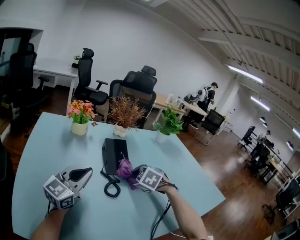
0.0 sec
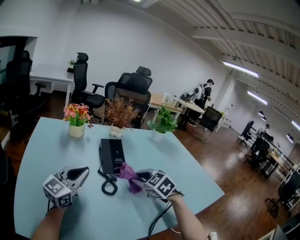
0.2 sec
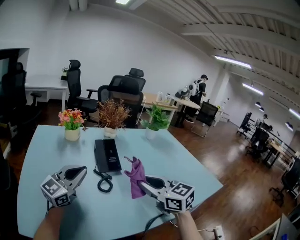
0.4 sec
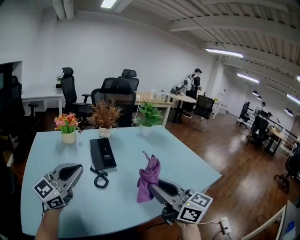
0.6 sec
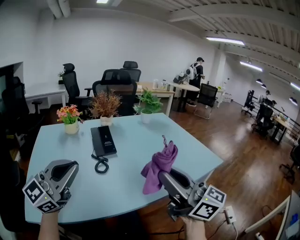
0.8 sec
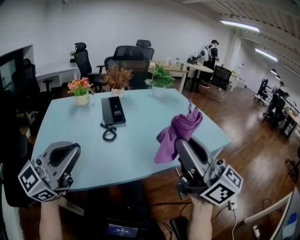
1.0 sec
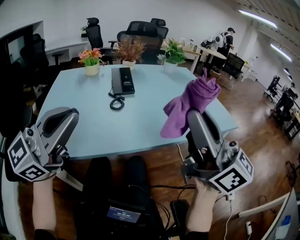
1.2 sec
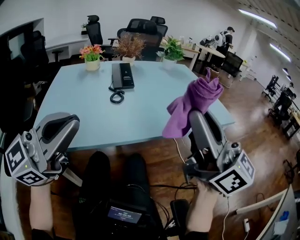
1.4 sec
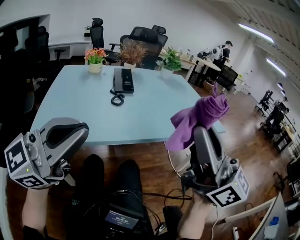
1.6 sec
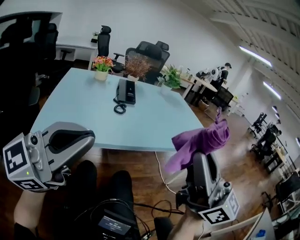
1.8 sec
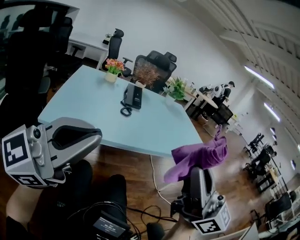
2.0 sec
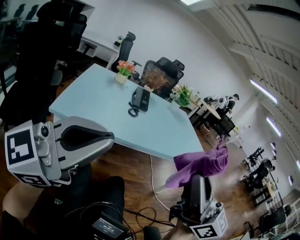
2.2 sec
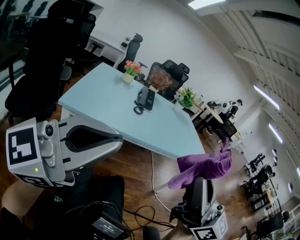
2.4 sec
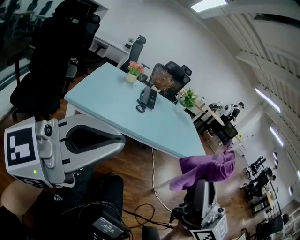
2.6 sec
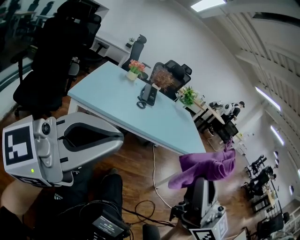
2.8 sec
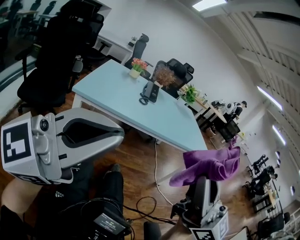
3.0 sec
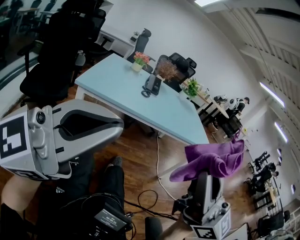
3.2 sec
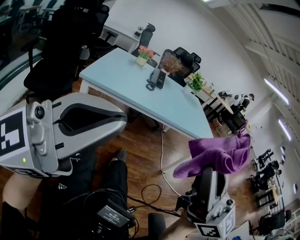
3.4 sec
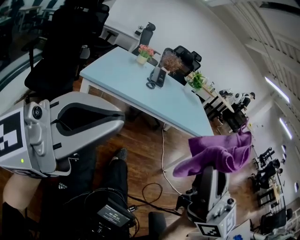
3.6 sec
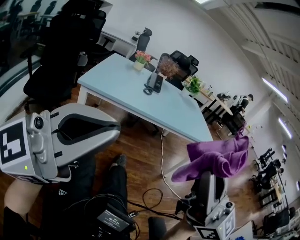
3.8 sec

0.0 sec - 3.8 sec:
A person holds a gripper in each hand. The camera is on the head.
0.0 sec - 1.2 sec: The two grippers travel together, backward and to the right, about 50 cm. The right gripper is displaced upward by approximately 25 cm, and tilts its fingers roughly 90 degrees upward.
1.2 sec - 2.6 sec: The two grippers travel together, backward, some 50 cm.
2.6 sec - 3.8 sec: Both grippers move backward, about 5 cm.

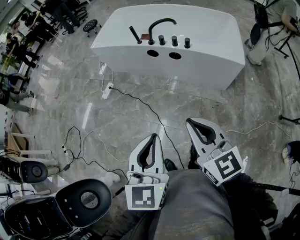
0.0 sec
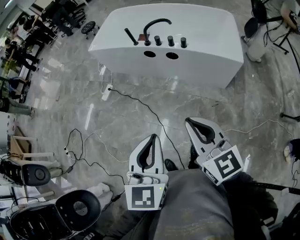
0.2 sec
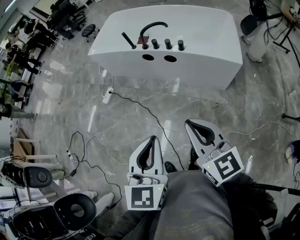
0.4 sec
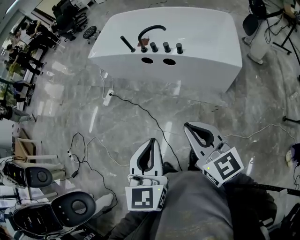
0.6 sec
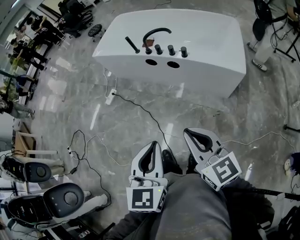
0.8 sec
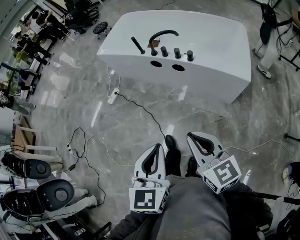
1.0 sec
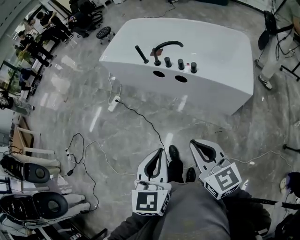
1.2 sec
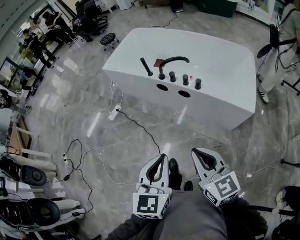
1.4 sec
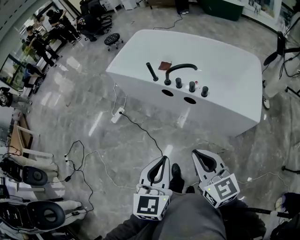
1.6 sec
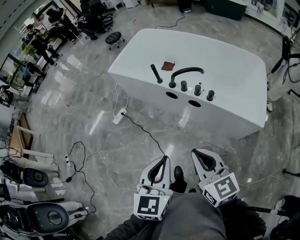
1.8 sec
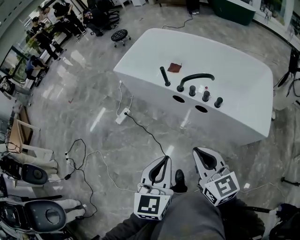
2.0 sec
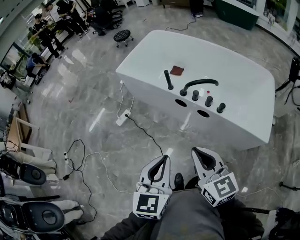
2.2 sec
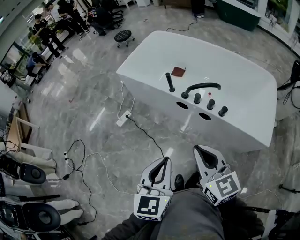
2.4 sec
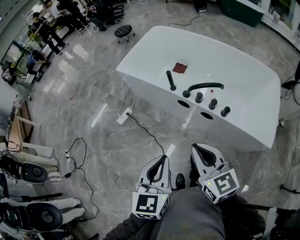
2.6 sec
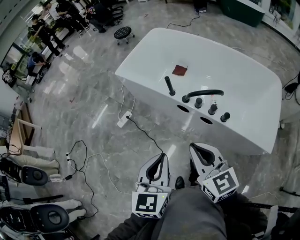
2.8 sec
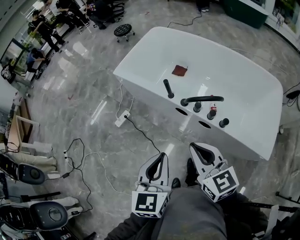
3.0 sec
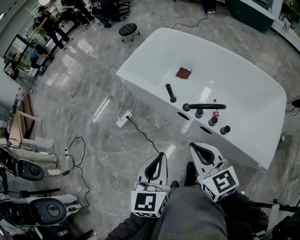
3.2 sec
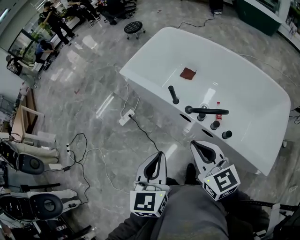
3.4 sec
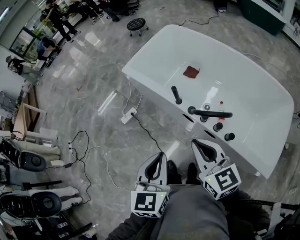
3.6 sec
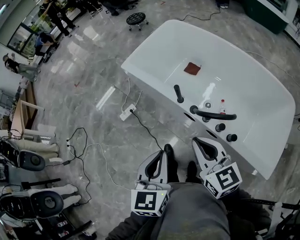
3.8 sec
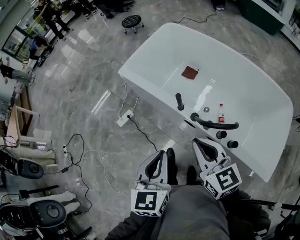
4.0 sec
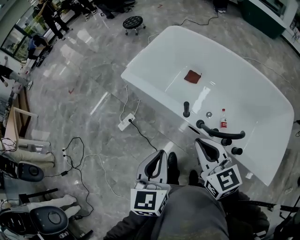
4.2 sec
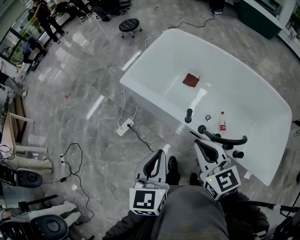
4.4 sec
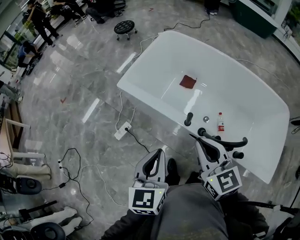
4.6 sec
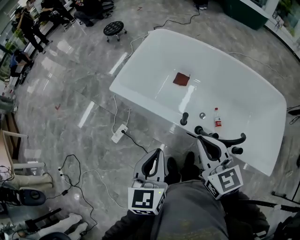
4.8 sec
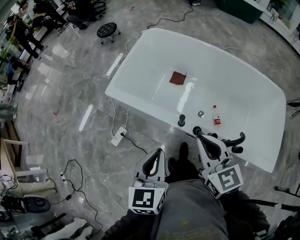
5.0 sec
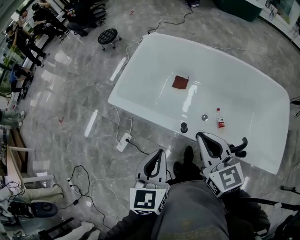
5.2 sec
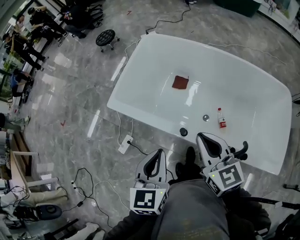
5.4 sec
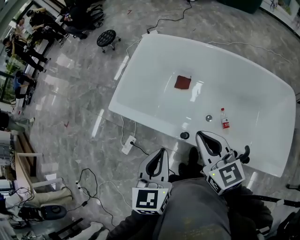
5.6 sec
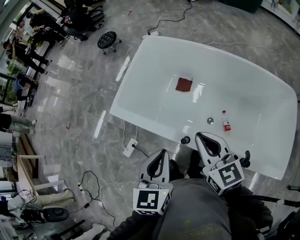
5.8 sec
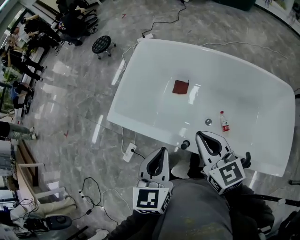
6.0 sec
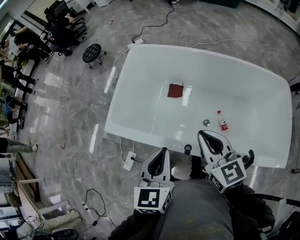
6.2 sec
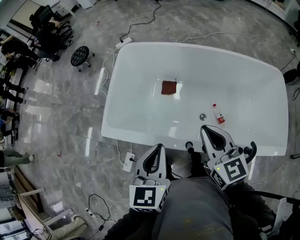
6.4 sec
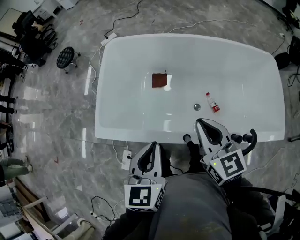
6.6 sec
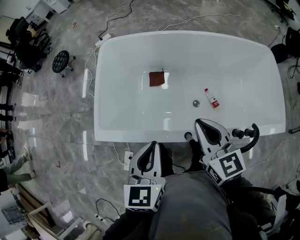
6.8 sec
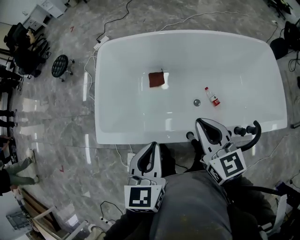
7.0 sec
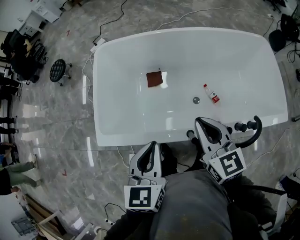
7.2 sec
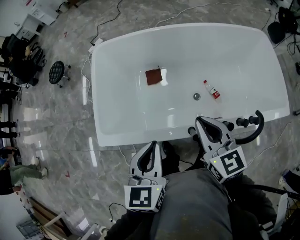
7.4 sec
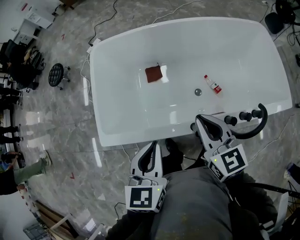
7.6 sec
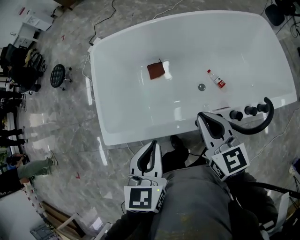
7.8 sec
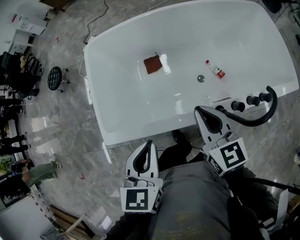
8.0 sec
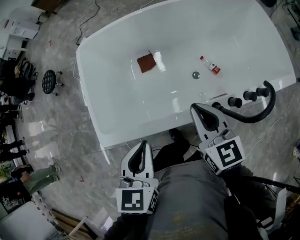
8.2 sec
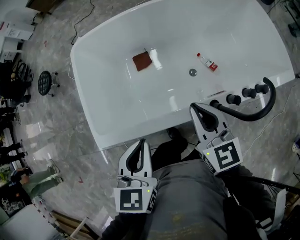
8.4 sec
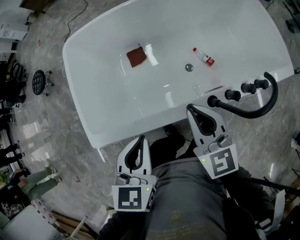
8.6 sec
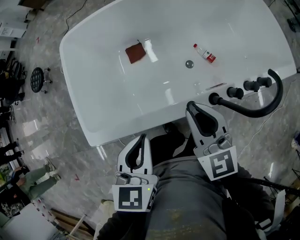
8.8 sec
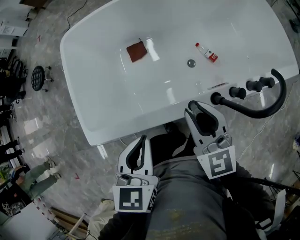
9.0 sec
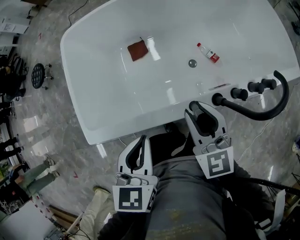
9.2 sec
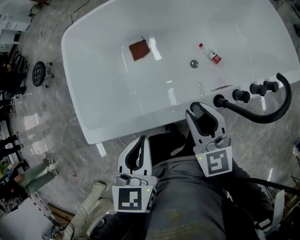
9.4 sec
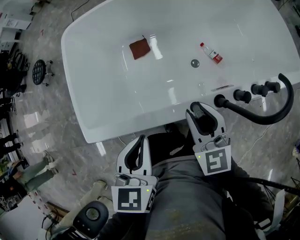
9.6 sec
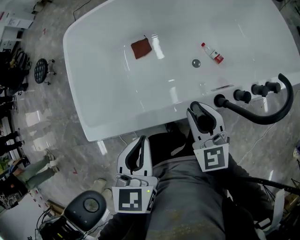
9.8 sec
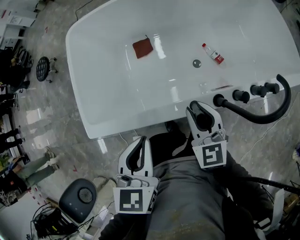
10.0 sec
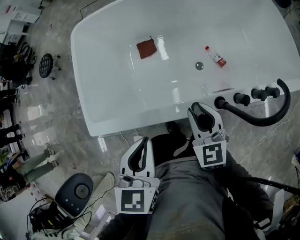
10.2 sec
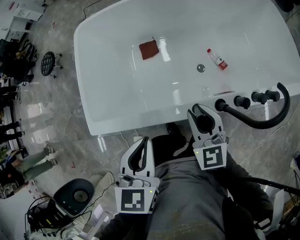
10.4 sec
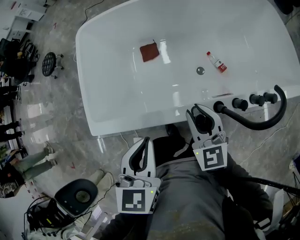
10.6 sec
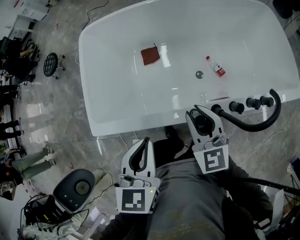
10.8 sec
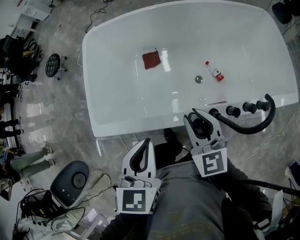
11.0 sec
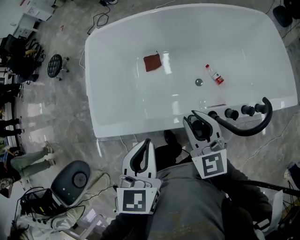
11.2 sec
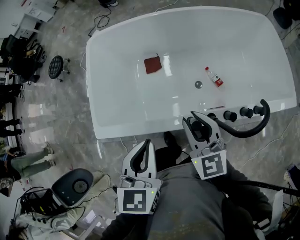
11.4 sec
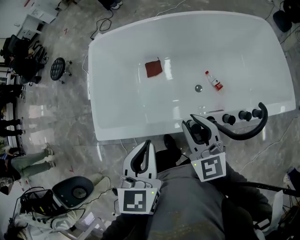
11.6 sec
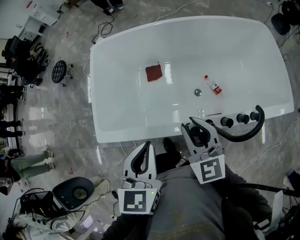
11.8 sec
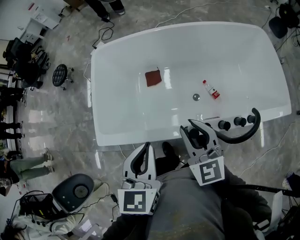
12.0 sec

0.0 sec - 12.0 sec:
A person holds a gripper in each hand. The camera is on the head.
0.0 sec - 1.6 sec: Both grippers move forward and to the right, roughly 20 cm.
1.6 sec - 3.0 sec: The two grippers go some 25 cm forward.
3.0 sec - 4.4 sec: The two grippers go about 25 cm forward.
4.4 sec - 6.0 sec: The left gripper shifts approximately 20 cm forward; the right gripper is displaced forward and to the right by some 20 cm.
6.0 sec - 7.6 sec: The right gripper goes approximately 5 cm downward, and swivels about 30 degrees. Meanwhile the left gripper ends up some 10 cm from where it was, and rotates some 30 degrees.
7.6 sec - 9.0 sec: The two grippers go roughly 10 cm downward. The right gripper opens.
9.0 sec - 10.4 sec: The right gripper shifts approximately 5 cm downward.
10.4 sec - 12.0 sec: Both grippers move upward, approximately 15 cm.

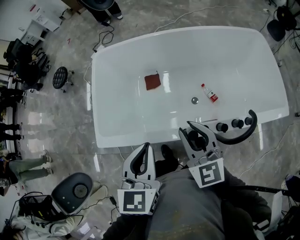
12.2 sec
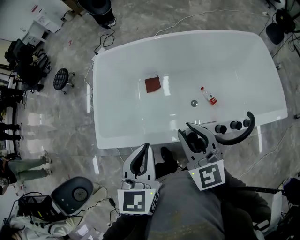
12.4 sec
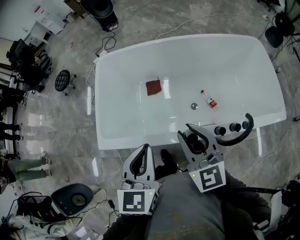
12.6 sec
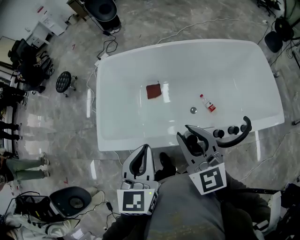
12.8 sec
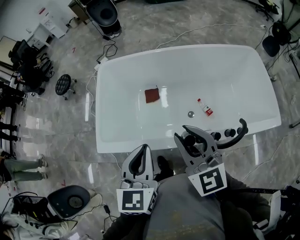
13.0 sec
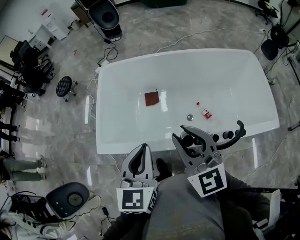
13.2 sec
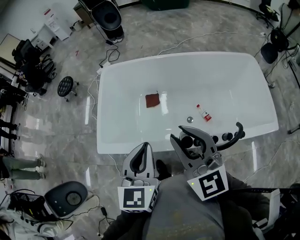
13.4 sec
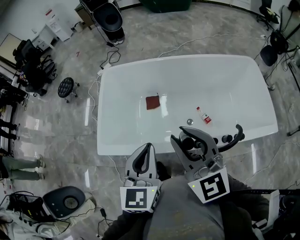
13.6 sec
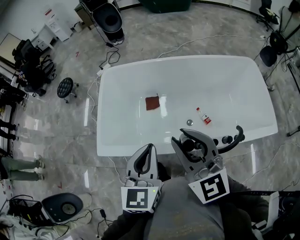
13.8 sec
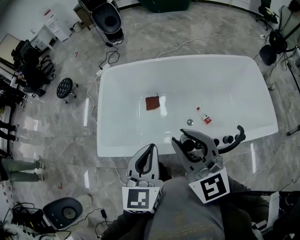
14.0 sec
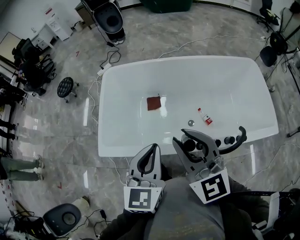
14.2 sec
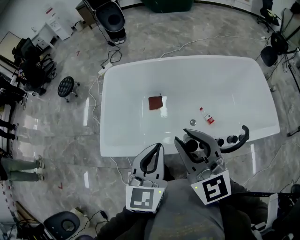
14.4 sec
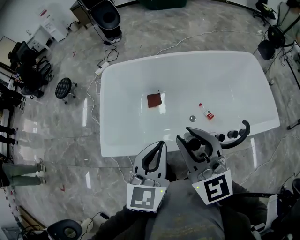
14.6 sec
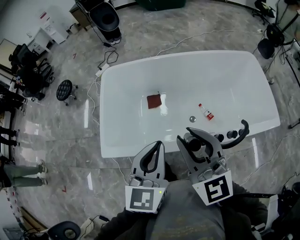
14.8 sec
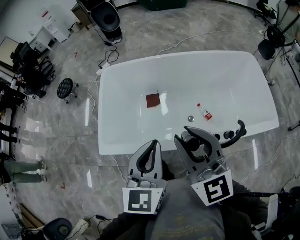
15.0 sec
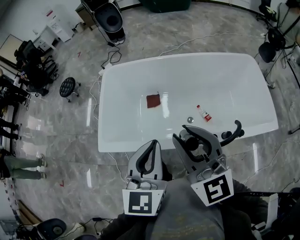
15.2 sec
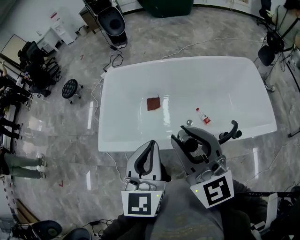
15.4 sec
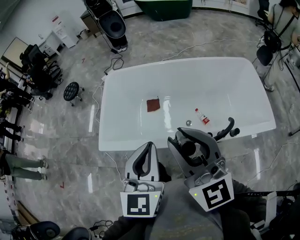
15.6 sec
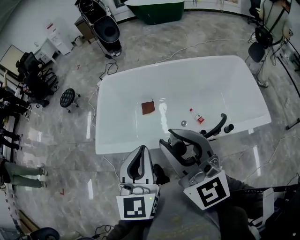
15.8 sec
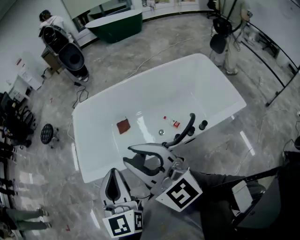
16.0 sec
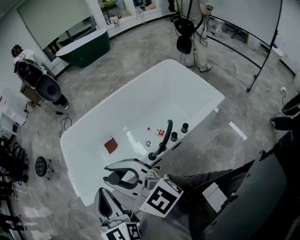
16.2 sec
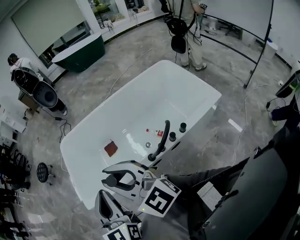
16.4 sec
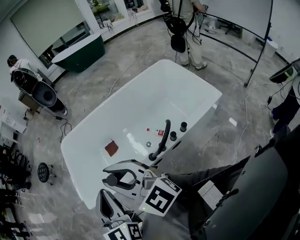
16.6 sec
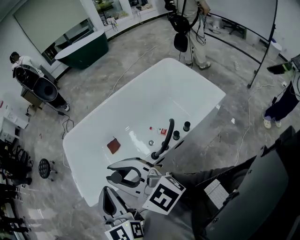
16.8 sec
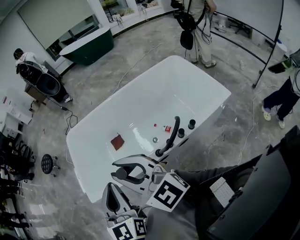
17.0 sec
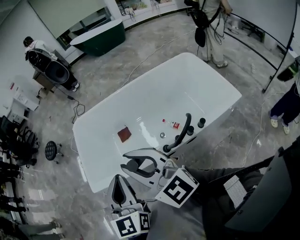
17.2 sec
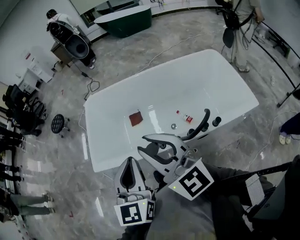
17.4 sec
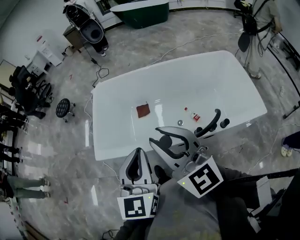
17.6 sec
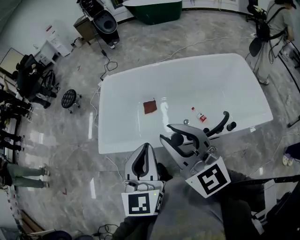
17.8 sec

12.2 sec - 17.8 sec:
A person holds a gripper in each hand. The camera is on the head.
12.2 sec - 13.6 sec: The left gripper goes some 5 cm upward. The right gripper moves upward, roughly 15 cm.
13.6 sec - 15.0 sec: The grippers move only a little.
15.0 sec - 16.4 sec: Both grippers move backward, some 10 cm.
16.4 sec - 17.8 sec: The right gripper moves some 5 cm upward and comes back.

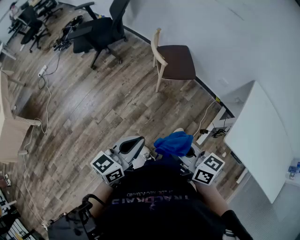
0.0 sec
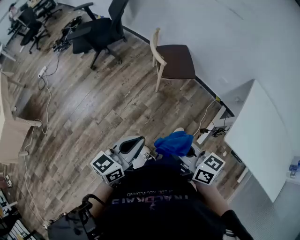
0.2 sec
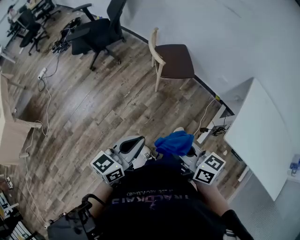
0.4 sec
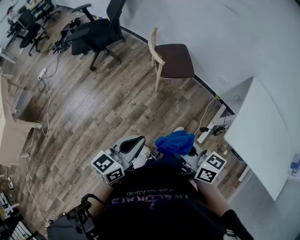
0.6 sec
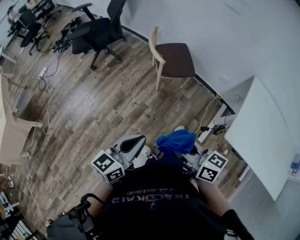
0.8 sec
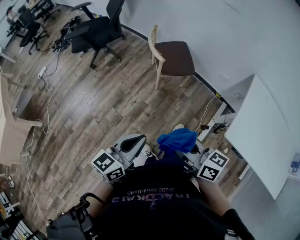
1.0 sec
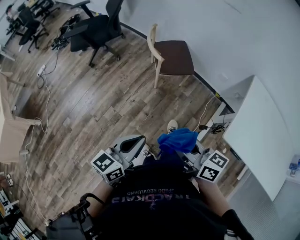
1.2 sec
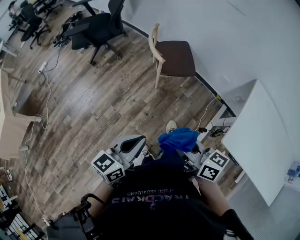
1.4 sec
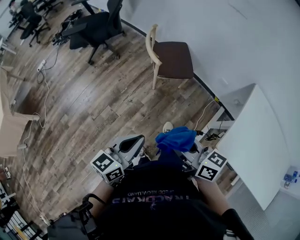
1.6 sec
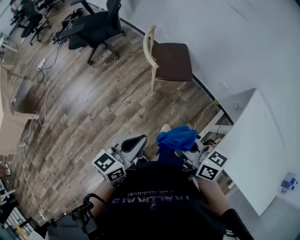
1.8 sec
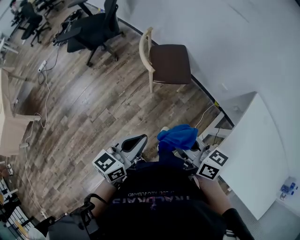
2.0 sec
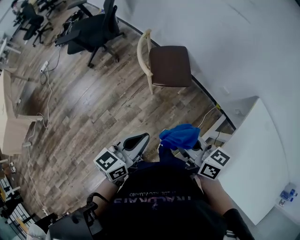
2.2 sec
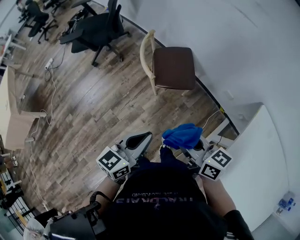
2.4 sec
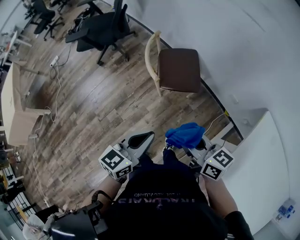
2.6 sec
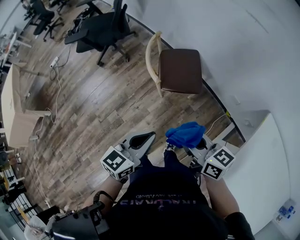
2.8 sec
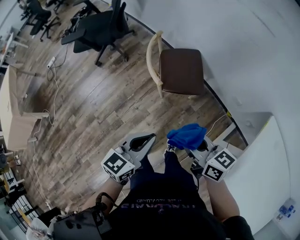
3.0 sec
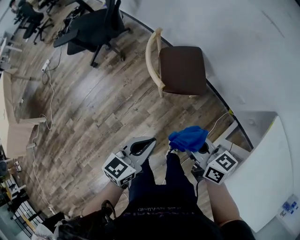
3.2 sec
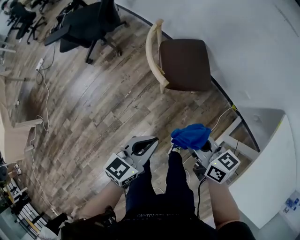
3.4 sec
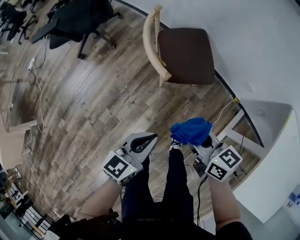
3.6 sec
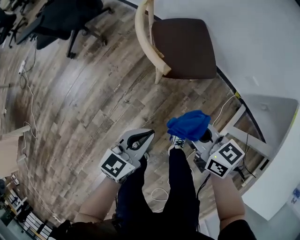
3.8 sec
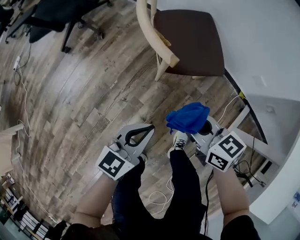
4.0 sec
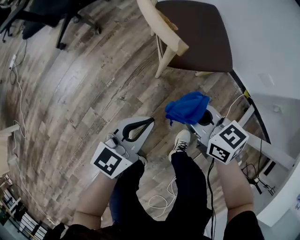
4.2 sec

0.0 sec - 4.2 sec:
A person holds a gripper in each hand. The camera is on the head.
0.0 sec - 1.4 sec: The right gripper moves to the right, some 5 cm.
1.4 sec - 2.8 sec: Both grippers move forward and to the right, roughly 25 cm.
2.8 sec - 4.2 sec: The two grippers go some 40 cm downward.
